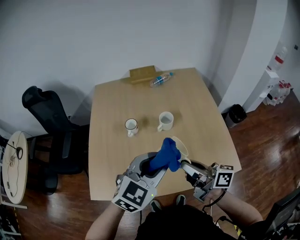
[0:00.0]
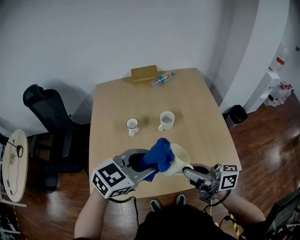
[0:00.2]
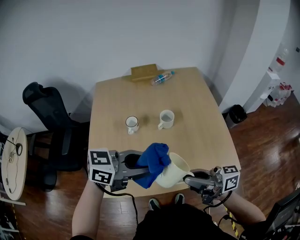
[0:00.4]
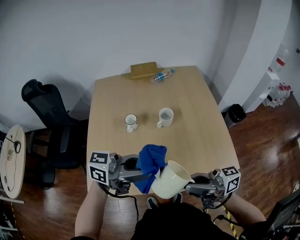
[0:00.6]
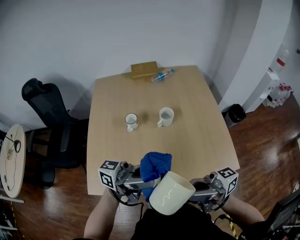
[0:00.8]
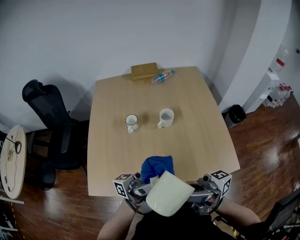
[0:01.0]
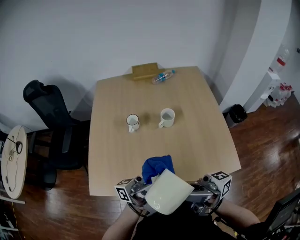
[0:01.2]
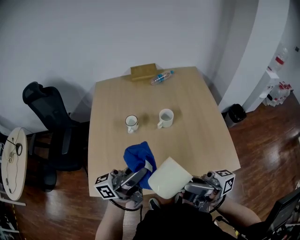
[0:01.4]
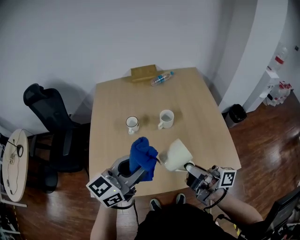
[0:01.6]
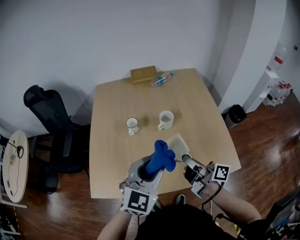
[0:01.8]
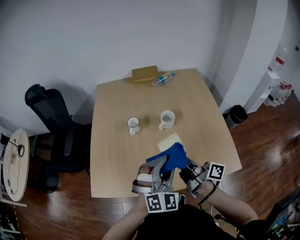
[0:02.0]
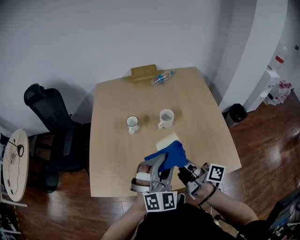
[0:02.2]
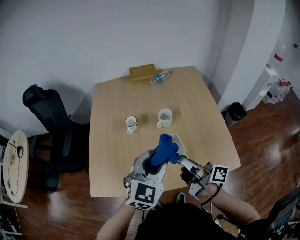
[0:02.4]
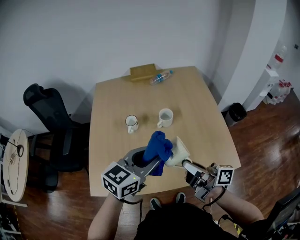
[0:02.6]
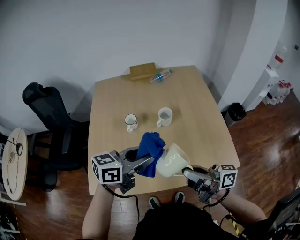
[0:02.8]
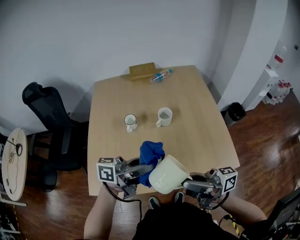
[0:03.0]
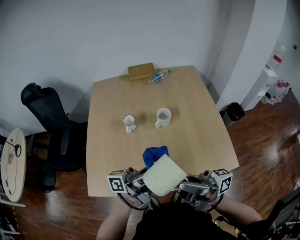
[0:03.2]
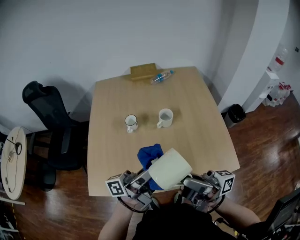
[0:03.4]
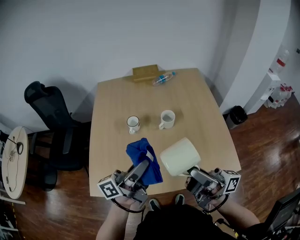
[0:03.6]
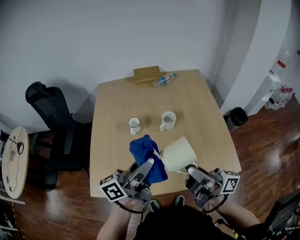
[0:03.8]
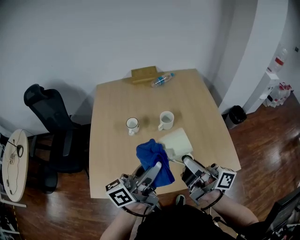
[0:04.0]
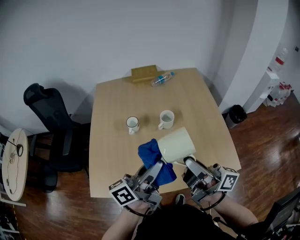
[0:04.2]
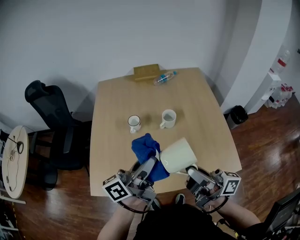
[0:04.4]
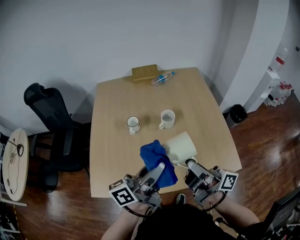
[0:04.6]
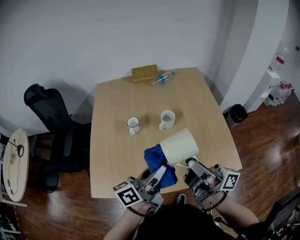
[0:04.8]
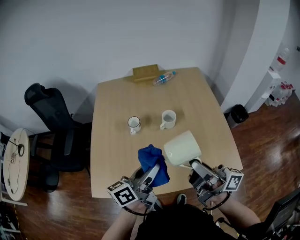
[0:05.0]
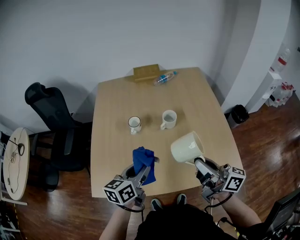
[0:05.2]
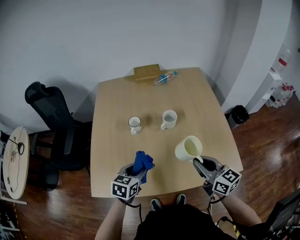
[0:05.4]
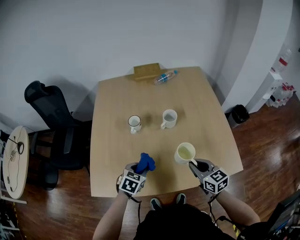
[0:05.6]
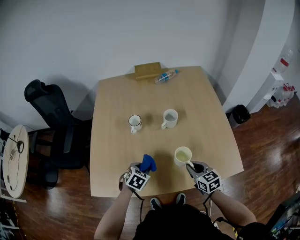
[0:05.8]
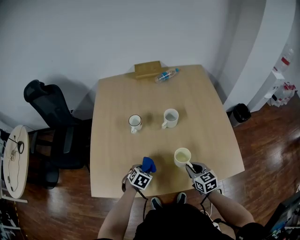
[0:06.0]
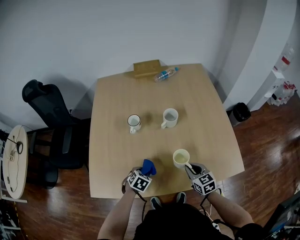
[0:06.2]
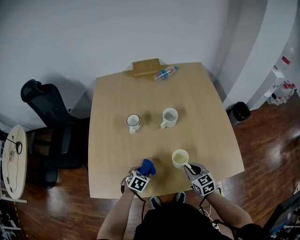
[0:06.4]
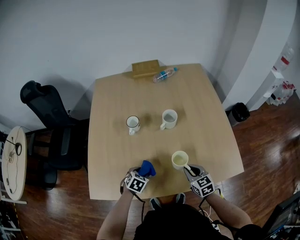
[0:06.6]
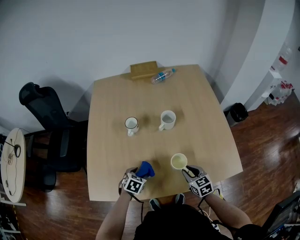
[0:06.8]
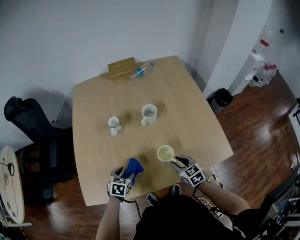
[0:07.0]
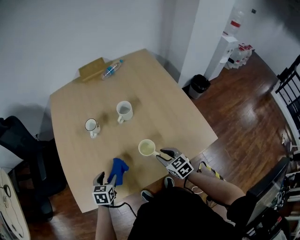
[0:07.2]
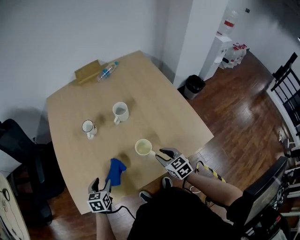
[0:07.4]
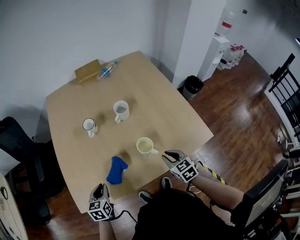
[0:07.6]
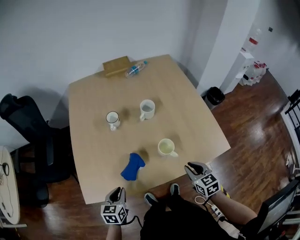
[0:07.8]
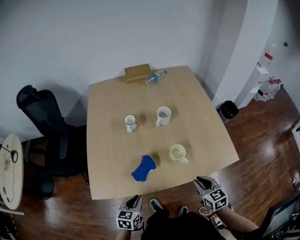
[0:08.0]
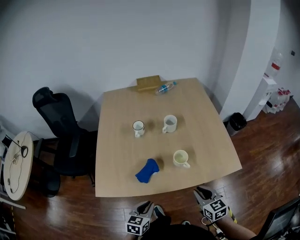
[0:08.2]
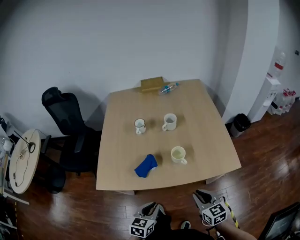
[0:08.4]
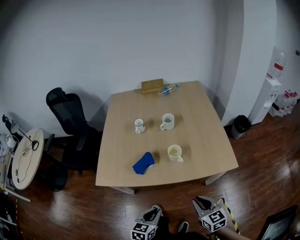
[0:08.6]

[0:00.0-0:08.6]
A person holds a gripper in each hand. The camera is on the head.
0:00.0 to 0:01.4: The right gripper ends up some 10 cm from where it was, and turns by roughly 40 degrees, while the left gripper shifts by approximately 10 cm, and angles its fingers upward, by some 50 degrees.
0:01.4 to 0:02.8: The right gripper is displaced downward by roughly 5 cm, and rotates some 20 degrees, while the left gripper angles its fingers downward, by about 40 degrees.
0:02.8 to 0:04.4: The left gripper rotates roughly 40 degrees.
0:04.4 to 0:05.8: Both grippers move downward, approximately 30 cm. The right gripper tilts its fingers approximately 50 degrees downward. Meanwhile the left gripper tips its fingers downward by about 80 degrees.
0:05.8 to 0:07.2: The right gripper shifts by some 5 cm; the left gripper travels to the left by approximately 5 cm, and opens.
0:07.2 to 0:08.6: The right gripper goes some 30 cm backward and upward. The left gripper moves backward and to the right, about 35 cm, and closes its fingers.

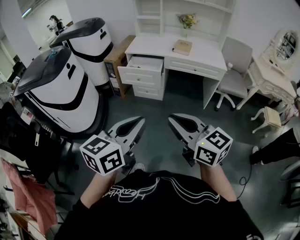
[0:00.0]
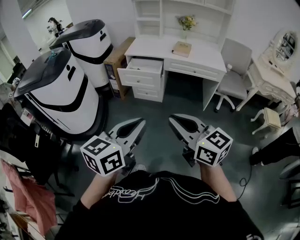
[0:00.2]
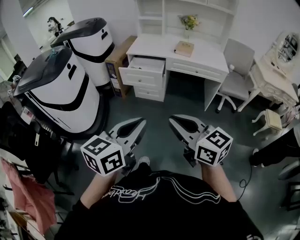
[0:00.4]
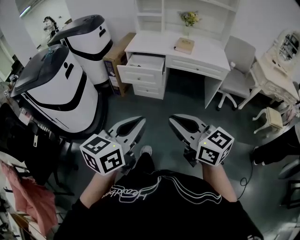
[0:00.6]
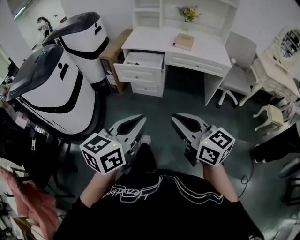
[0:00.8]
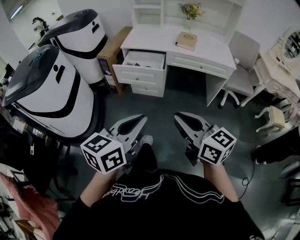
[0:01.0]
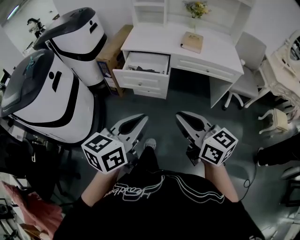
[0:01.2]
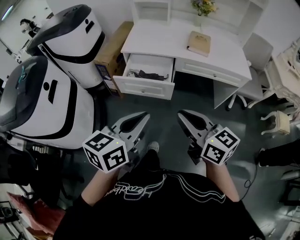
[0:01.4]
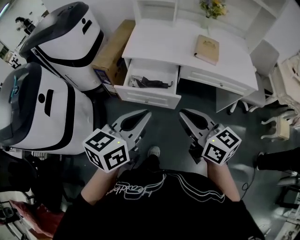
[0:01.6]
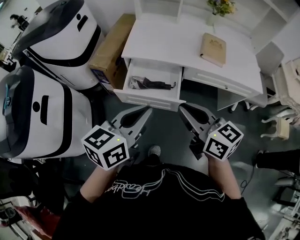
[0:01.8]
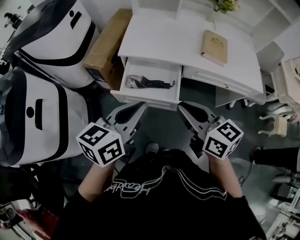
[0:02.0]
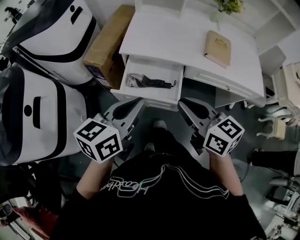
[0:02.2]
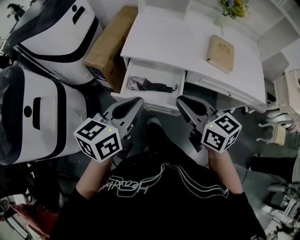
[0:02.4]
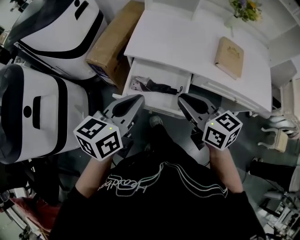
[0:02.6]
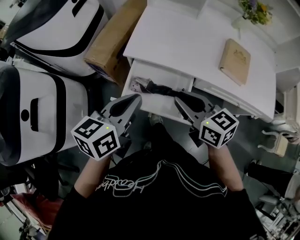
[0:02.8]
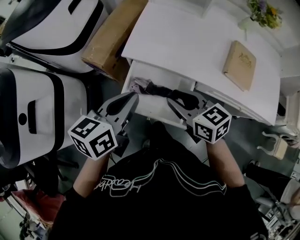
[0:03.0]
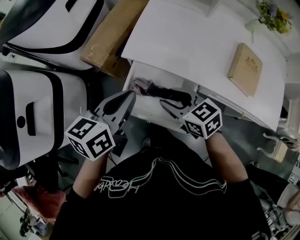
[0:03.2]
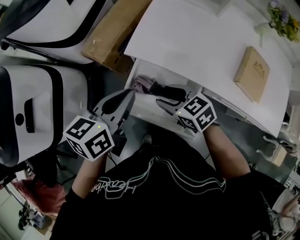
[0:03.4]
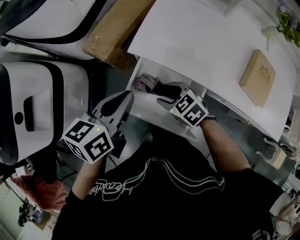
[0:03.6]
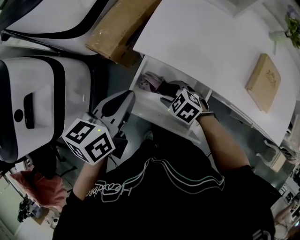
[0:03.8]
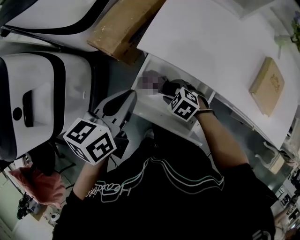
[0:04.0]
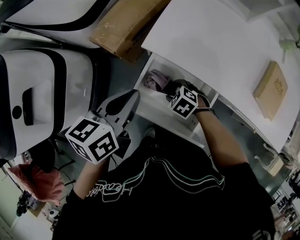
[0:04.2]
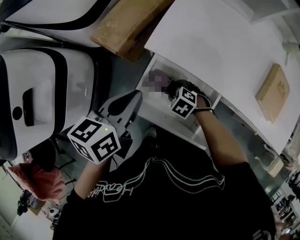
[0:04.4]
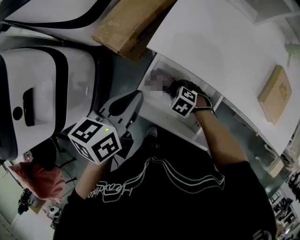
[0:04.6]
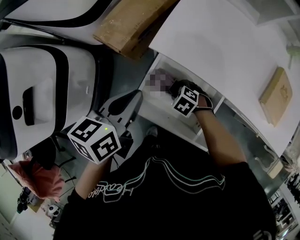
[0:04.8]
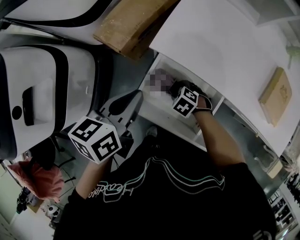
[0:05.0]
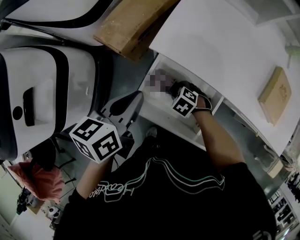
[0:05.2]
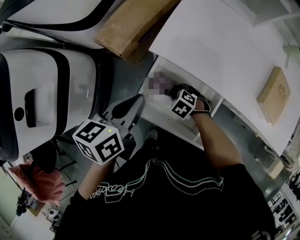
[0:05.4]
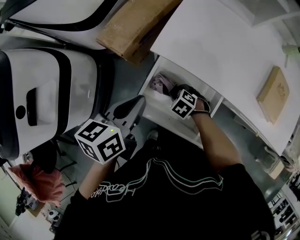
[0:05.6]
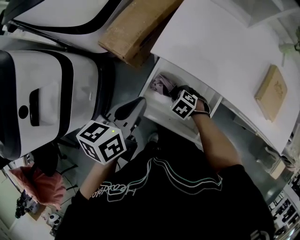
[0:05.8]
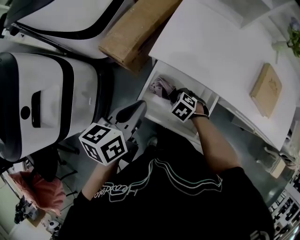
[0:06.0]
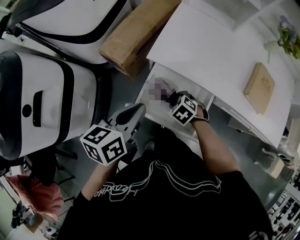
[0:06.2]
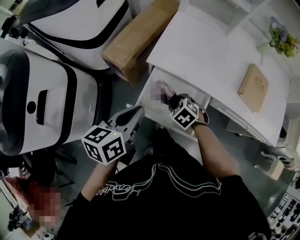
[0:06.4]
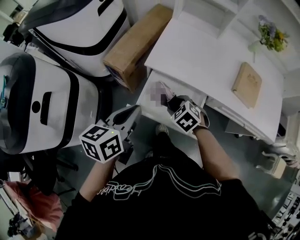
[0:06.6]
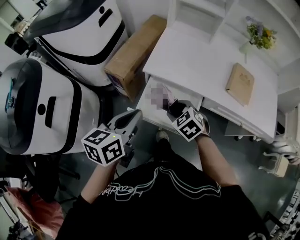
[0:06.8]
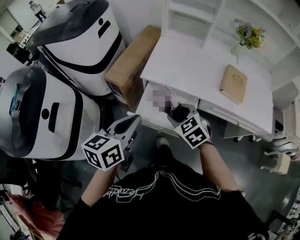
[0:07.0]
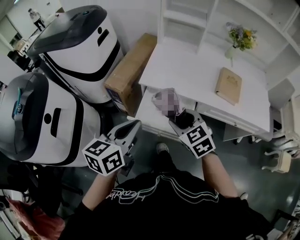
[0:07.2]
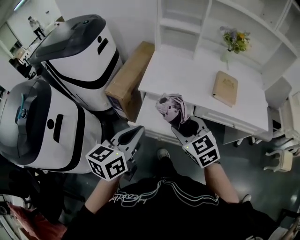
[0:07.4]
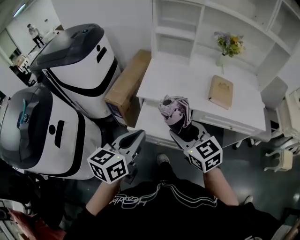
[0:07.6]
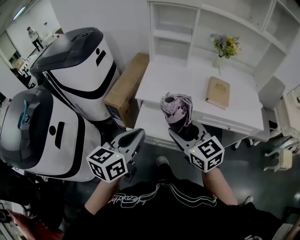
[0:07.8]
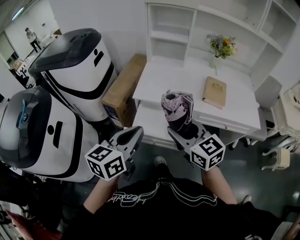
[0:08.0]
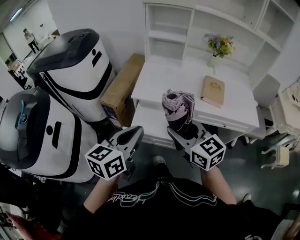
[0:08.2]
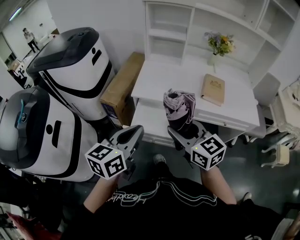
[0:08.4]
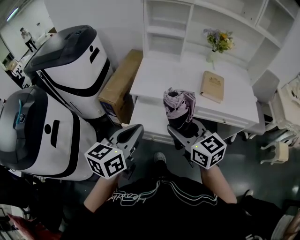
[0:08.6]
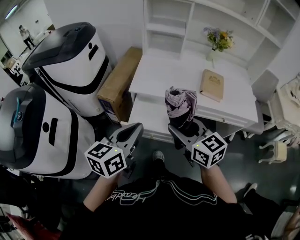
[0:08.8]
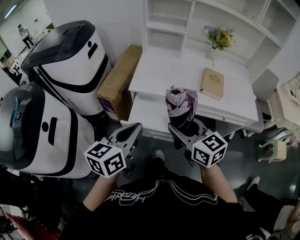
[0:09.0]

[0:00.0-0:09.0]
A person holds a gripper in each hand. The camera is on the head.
0:00.0 to 0:01.6: The two grippers travel together, forward, approximately 50 cm.
0:01.6 to 0:03.0: The left gripper heads forward, covering some 30 cm; the right gripper goes about 35 cm forward and downward, and swivels approximately 20 degrees.
0:03.0 to 0:04.4: The right gripper travels downward by roughly 30 cm, tilts its fingers approximately 50 degrees downward, and opens up, while the left gripper shifts approximately 10 cm downward and forward.
0:04.4 to 0:06.0: There are only small adjustments of the grippers.
0:06.0 to 0:07.6: The left gripper shifts some 20 cm upward, and swivels approximately 30 degrees; the right gripper goes about 40 cm upward, and tilts its fingers some 50 degrees upward.
0:07.6 to 0:09.0: The grippers move only a little.

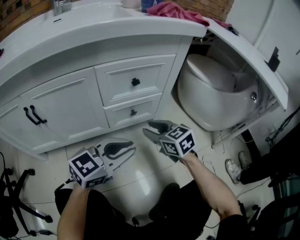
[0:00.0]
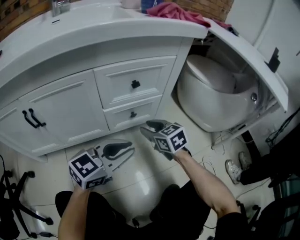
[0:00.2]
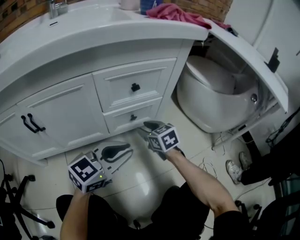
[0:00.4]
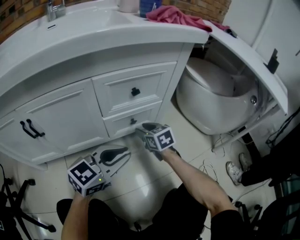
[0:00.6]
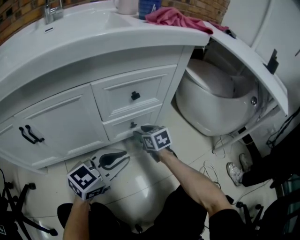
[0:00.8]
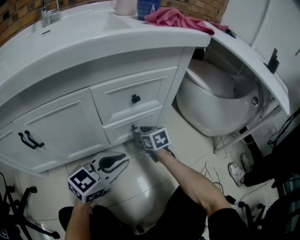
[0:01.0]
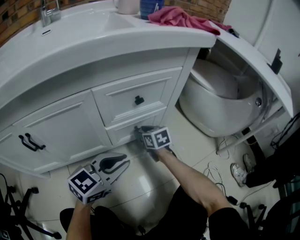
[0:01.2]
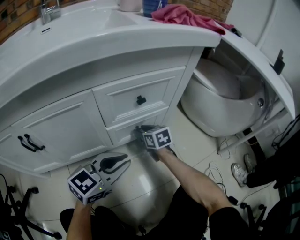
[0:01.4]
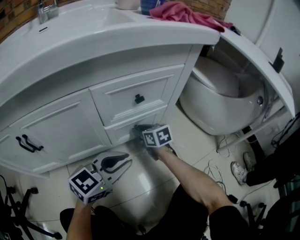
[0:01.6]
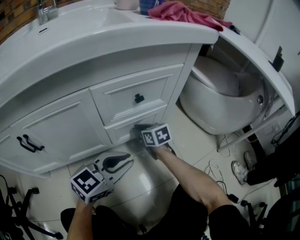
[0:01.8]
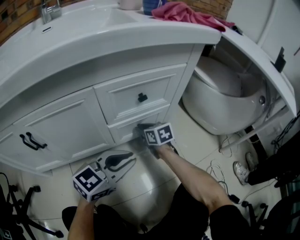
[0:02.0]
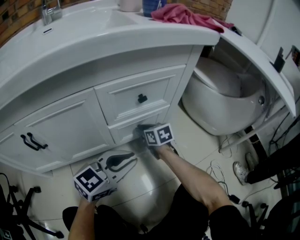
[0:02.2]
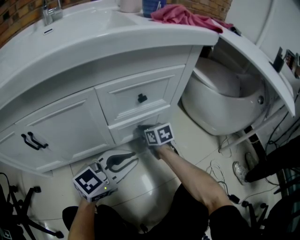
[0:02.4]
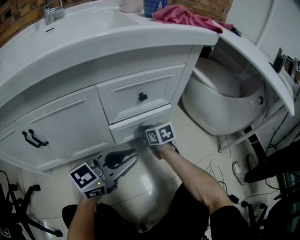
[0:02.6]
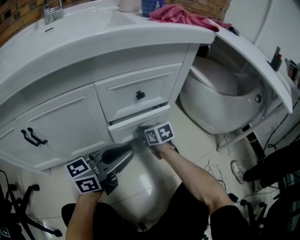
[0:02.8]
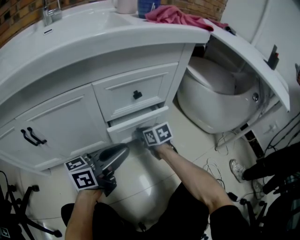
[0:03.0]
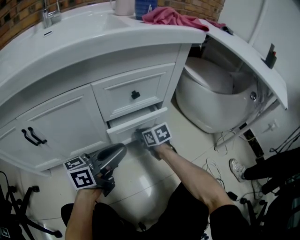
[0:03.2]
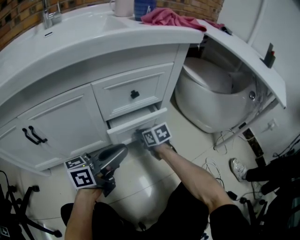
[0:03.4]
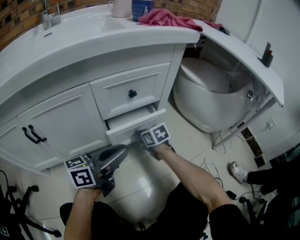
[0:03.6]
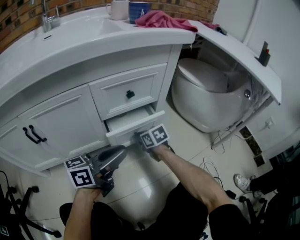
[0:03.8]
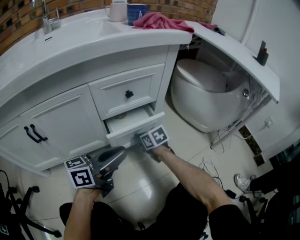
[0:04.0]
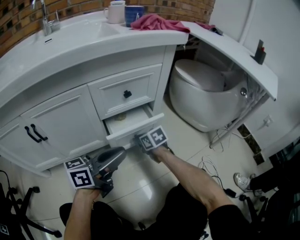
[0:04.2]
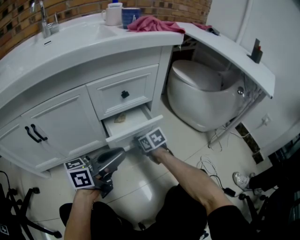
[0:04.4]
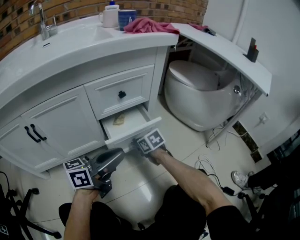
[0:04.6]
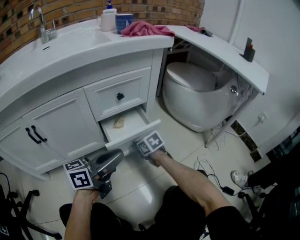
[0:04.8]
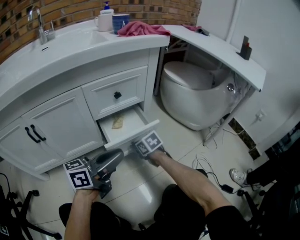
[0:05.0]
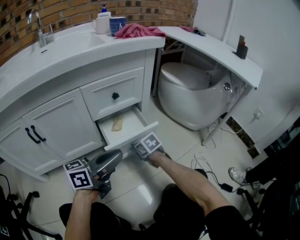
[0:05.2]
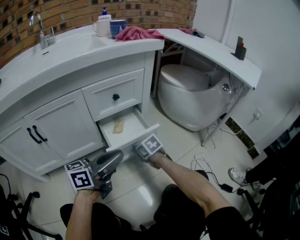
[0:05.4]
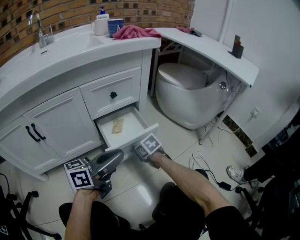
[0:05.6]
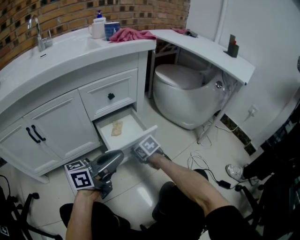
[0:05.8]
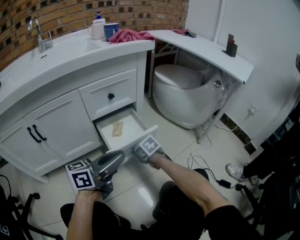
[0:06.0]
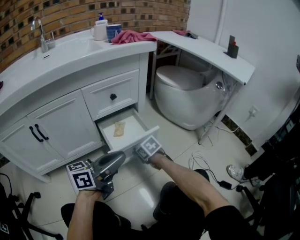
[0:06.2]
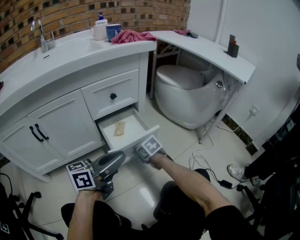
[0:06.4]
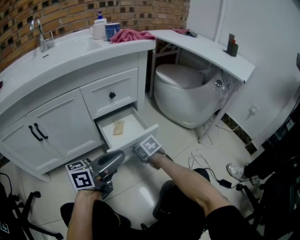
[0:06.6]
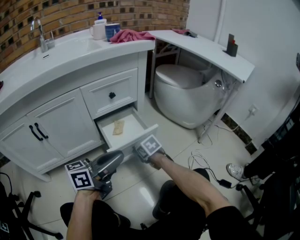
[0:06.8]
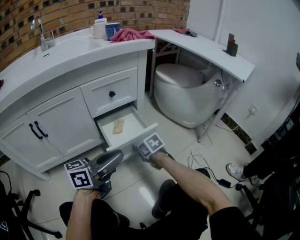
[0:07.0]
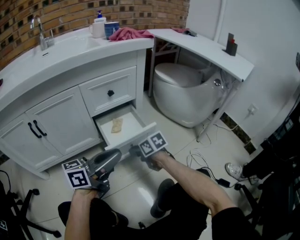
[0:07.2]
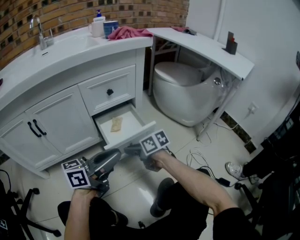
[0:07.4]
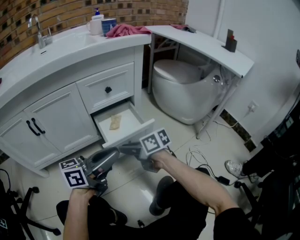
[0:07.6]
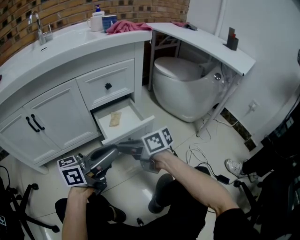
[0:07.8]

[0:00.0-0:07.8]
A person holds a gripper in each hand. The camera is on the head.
0:00.0 to 0:01.6: The right gripper travels forward, downward and to the left by approximately 20 cm, and rotates about 20 degrees, while the left gripper travels forward by about 5 cm.
0:01.6 to 0:03.2: The left gripper swivels some 40 degrees.
0:03.2 to 0:04.6: Both grippers travel together backward, roughly 5 cm.
0:04.6 to 0:06.2: Both grippers travel together backward, approximately 5 cm.
0:06.2 to 0:07.8: The right gripper shifts roughly 15 cm upward, and tilts its fingers about 40 degrees upward.
